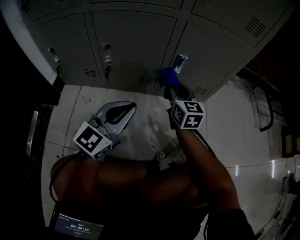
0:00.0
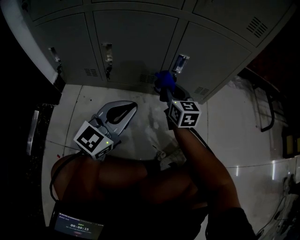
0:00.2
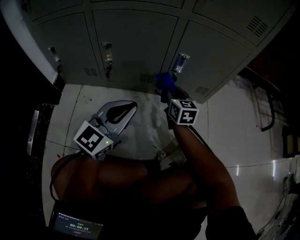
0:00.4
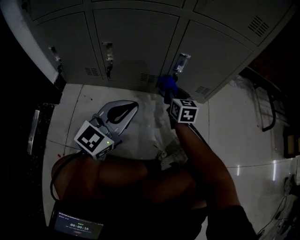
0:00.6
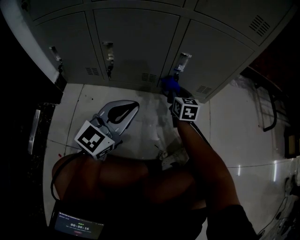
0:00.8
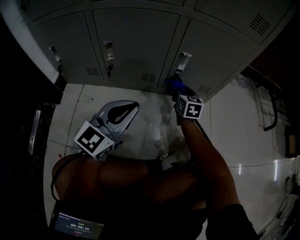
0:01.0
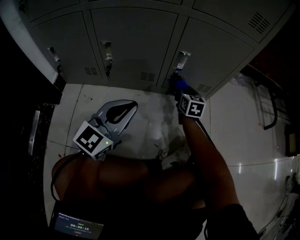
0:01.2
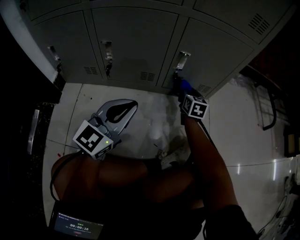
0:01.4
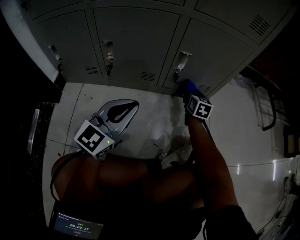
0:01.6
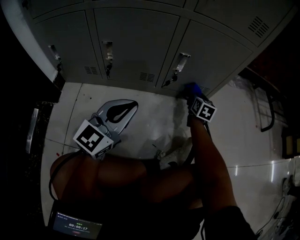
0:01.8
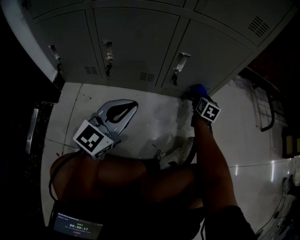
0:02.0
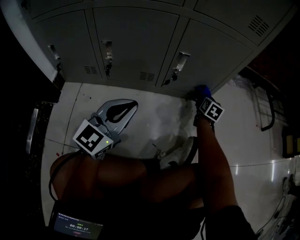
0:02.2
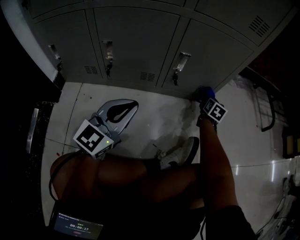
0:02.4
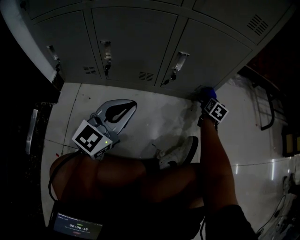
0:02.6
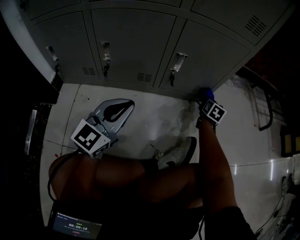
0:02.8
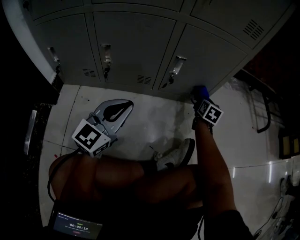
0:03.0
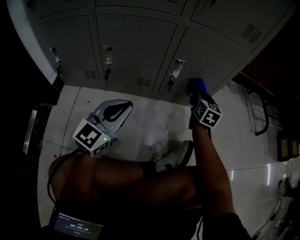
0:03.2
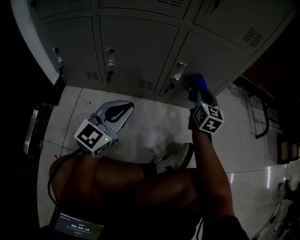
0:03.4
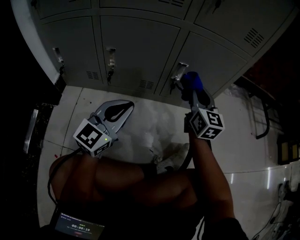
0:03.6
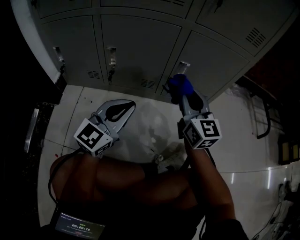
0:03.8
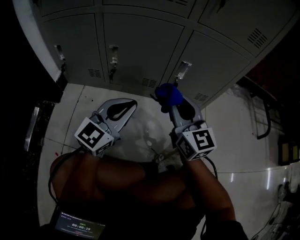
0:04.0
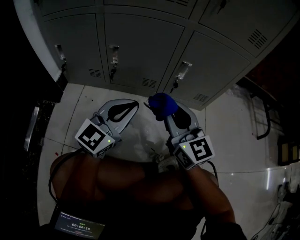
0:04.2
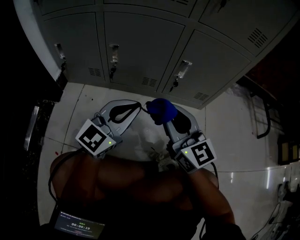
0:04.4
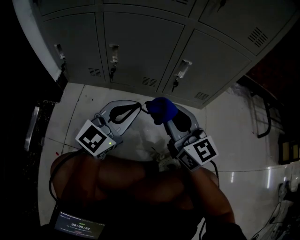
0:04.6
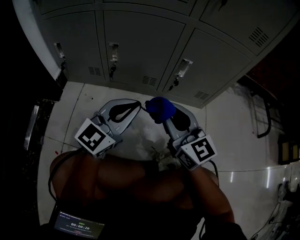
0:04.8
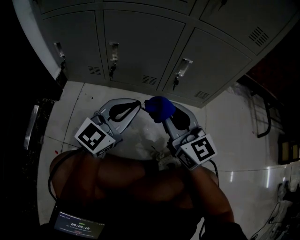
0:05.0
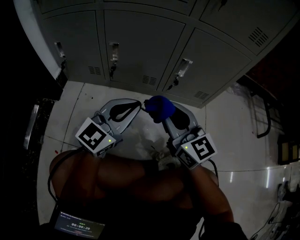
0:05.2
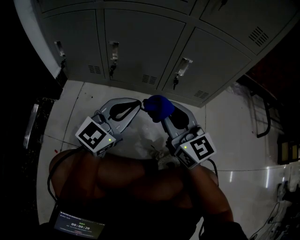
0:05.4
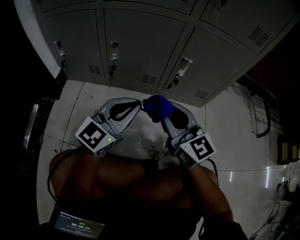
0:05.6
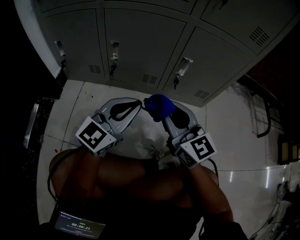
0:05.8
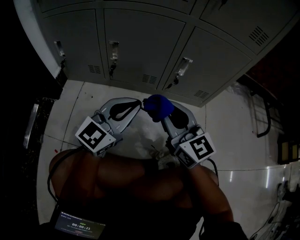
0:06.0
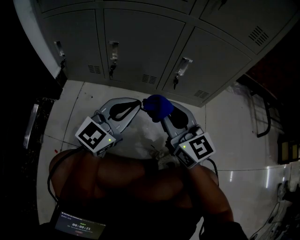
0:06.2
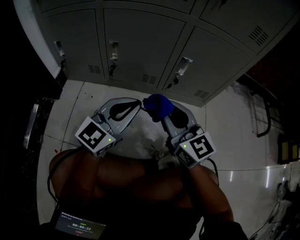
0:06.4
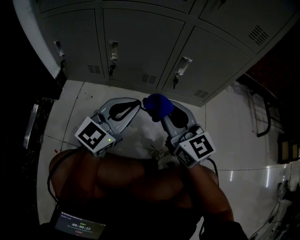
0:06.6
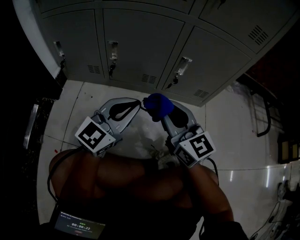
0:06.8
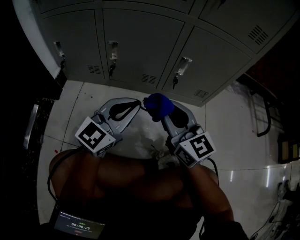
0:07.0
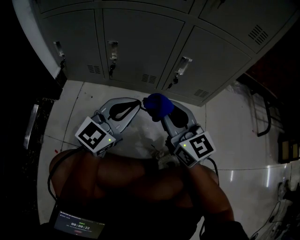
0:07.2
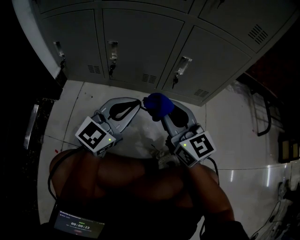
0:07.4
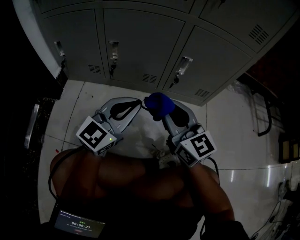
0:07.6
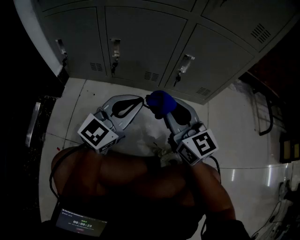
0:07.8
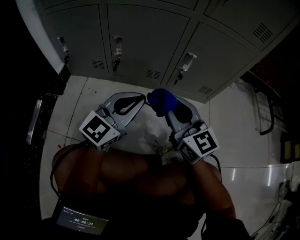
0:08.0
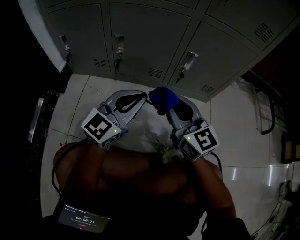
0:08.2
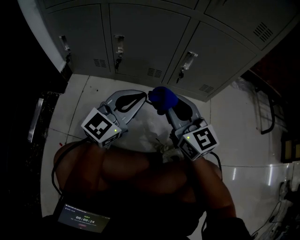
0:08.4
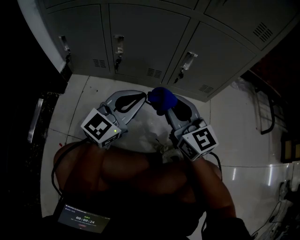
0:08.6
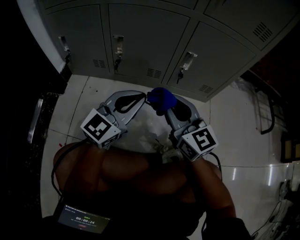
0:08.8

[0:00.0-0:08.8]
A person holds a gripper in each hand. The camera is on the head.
0:00.0 to 0:01.4: The right gripper moves downward, to the right and forward, some 15 cm.
0:01.4 to 0:03.0: The right gripper goes roughly 10 cm to the right.
0:03.0 to 0:04.4: The right gripper shifts approximately 35 cm backward, to the left and upward, and angles its fingers upward, by about 30 degrees.
0:04.4 to 0:05.8: The two grippers keep their place.
0:05.8 to 0:08.8: The two grippers keep their place.

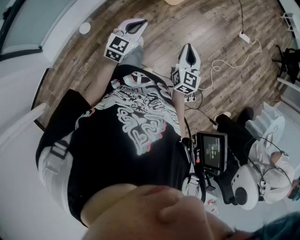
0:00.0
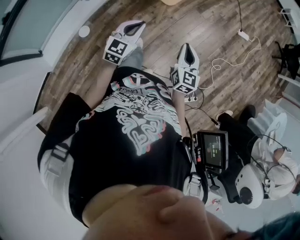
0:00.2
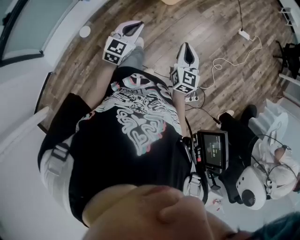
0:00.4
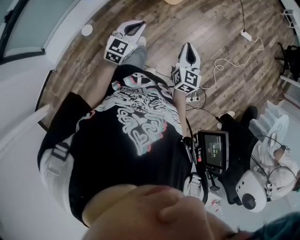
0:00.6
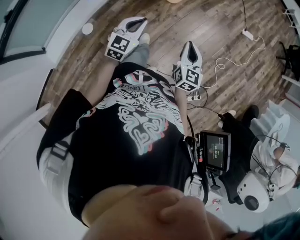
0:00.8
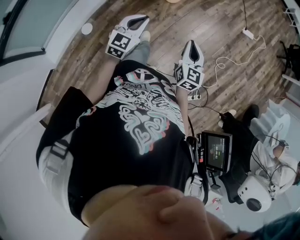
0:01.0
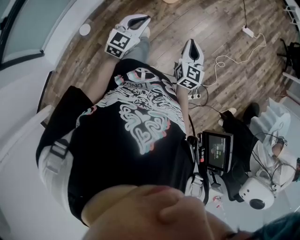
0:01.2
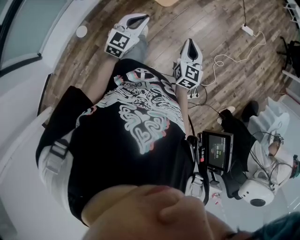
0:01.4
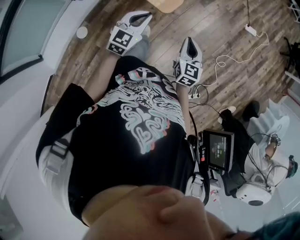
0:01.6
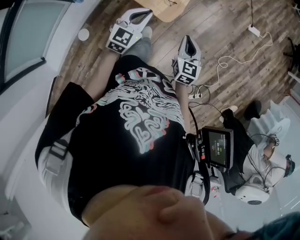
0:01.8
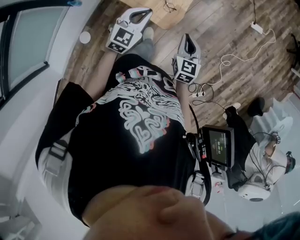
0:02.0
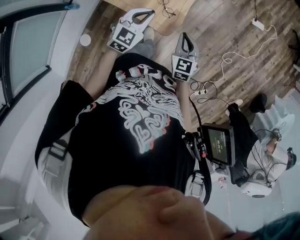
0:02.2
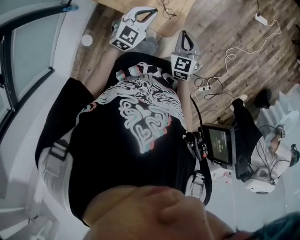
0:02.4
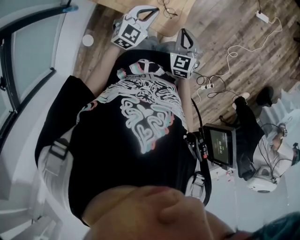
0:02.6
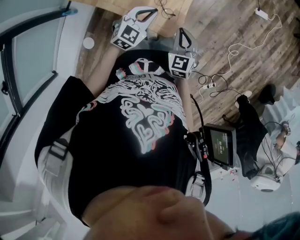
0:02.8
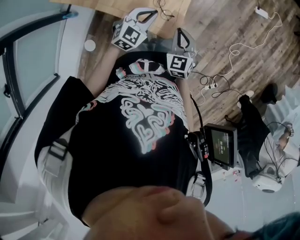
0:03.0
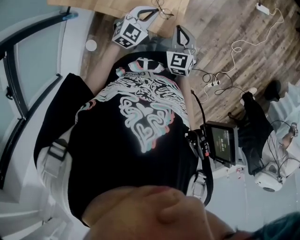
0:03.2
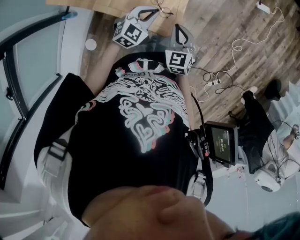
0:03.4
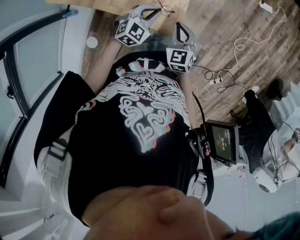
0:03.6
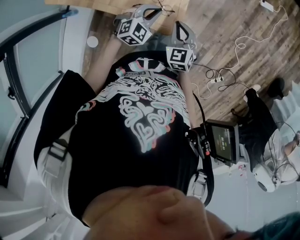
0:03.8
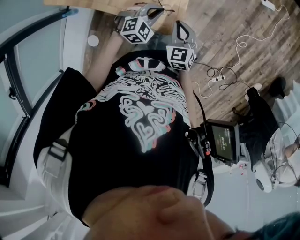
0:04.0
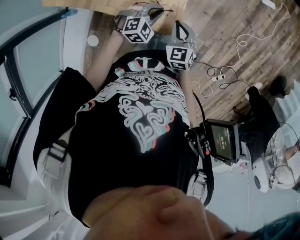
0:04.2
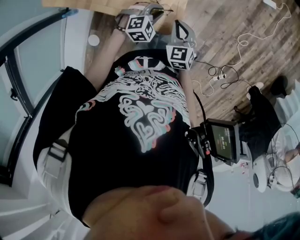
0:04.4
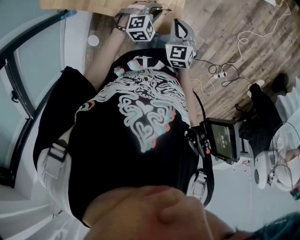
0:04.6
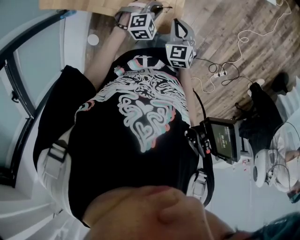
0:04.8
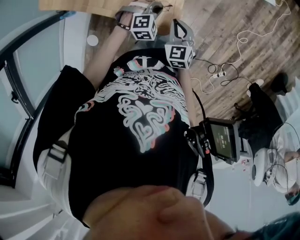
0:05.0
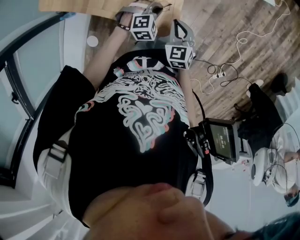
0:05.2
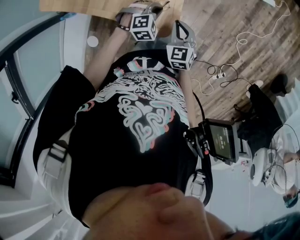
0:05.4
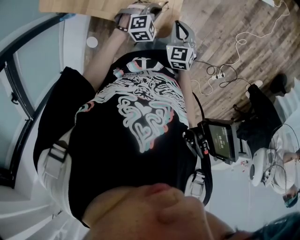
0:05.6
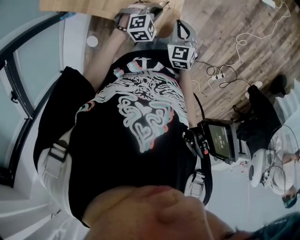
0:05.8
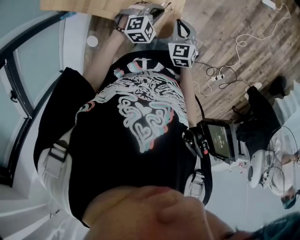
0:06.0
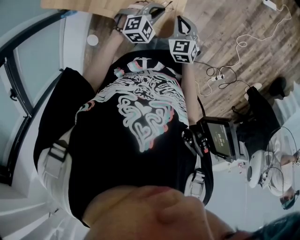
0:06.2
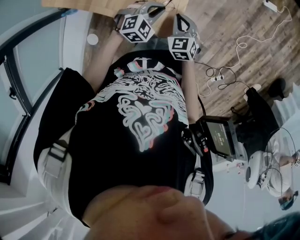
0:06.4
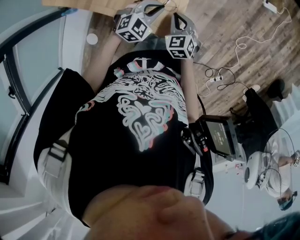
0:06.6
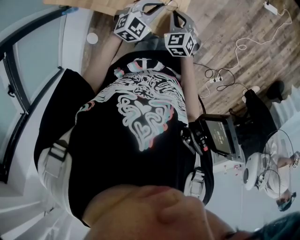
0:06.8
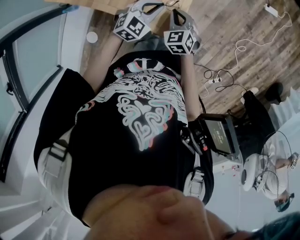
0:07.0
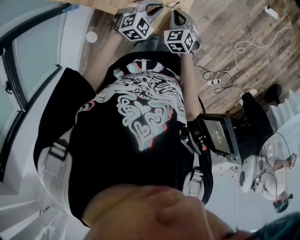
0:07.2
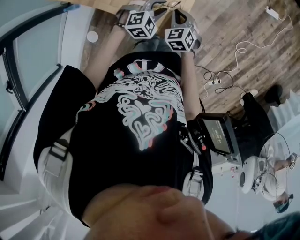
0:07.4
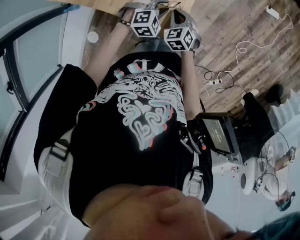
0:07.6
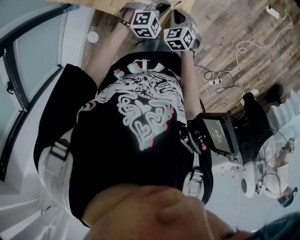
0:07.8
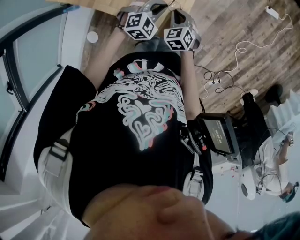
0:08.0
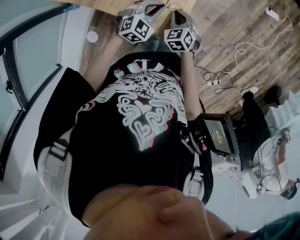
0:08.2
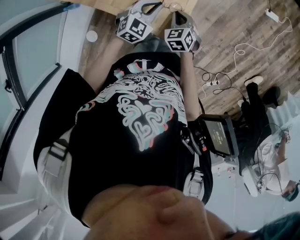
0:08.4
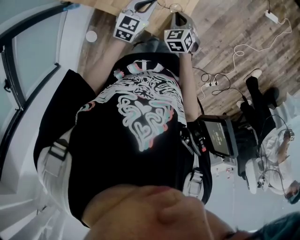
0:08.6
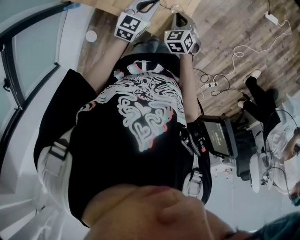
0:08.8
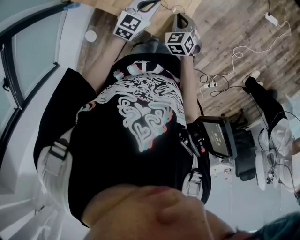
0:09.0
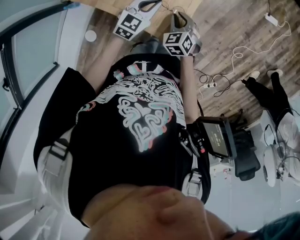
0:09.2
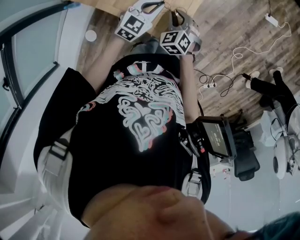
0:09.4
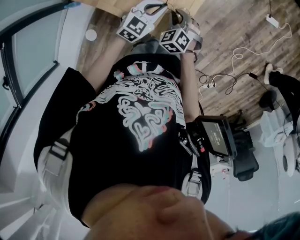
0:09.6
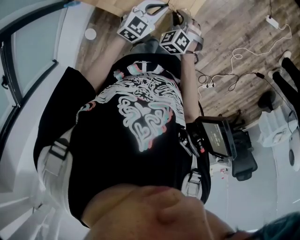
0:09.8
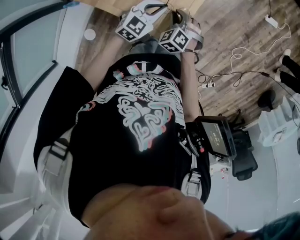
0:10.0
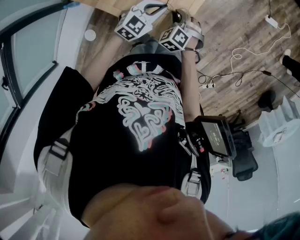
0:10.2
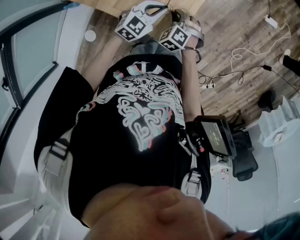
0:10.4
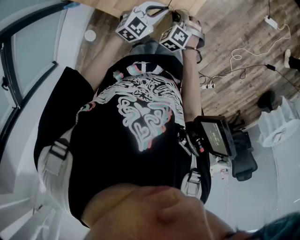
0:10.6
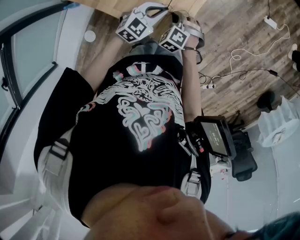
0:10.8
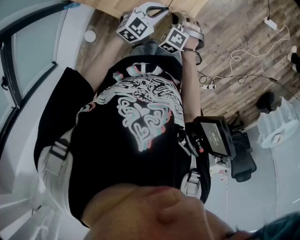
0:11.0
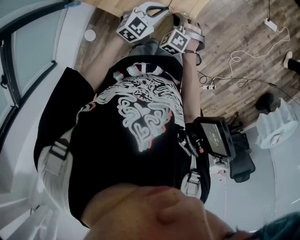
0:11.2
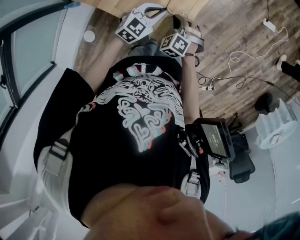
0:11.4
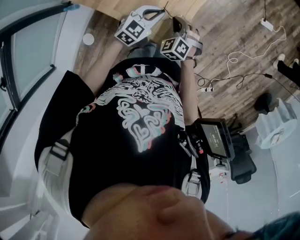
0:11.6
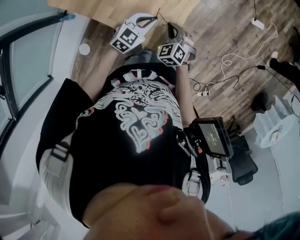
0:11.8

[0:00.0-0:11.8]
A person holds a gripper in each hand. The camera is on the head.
0:00.0 to 0:01.4: Both grippers travel together forward, some 10 cm.
0:01.4 to 0:03.0: The right gripper heads forward and to the left, covering roughly 25 cm, and changes its angle by about 20 degrees. The left gripper shifts approximately 25 cm forward, and turns by about 20 degrees.
0:03.0 to 0:04.4: The left gripper is displaced downward by about 10 cm, and turns by about 30 degrees. Meanwhile the right gripper ends up some 5 cm from where it was.
0:04.4 to 0:06.0: The grippers make only small movements.
0:06.0 to 0:07.4: The right gripper moves roughly 5 cm; the left gripper opens up.
0:07.4 to 0:08.8: The left gripper travels to the left and upward by roughly 10 cm, rotates around the line of its fingers by roughly 40 degrees, counterclockwise from behind, and closes its fingers.
0:08.8 to 0:10.4: The left gripper turns by roughly 20 degrees; the right gripper swivels some 30 degrees.
0:10.4 to 0:11.8: The grippers move only a little.

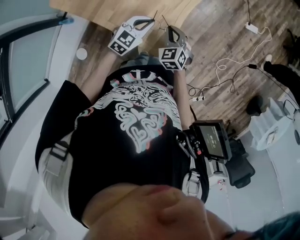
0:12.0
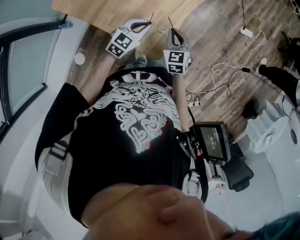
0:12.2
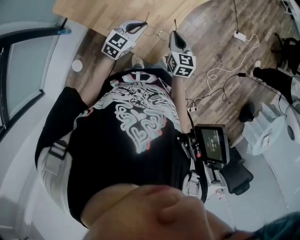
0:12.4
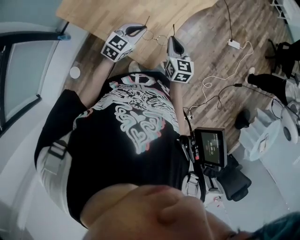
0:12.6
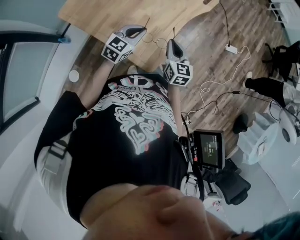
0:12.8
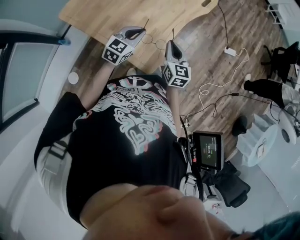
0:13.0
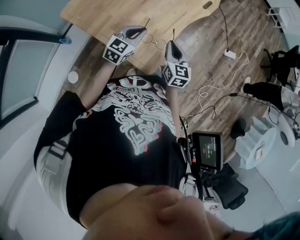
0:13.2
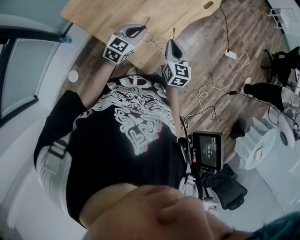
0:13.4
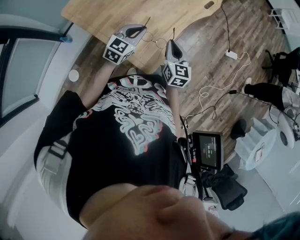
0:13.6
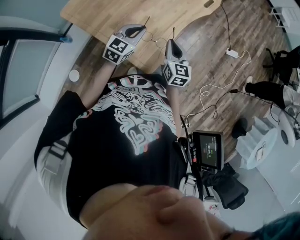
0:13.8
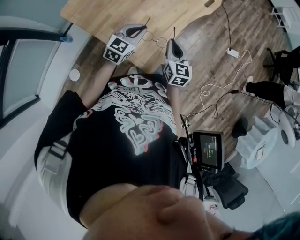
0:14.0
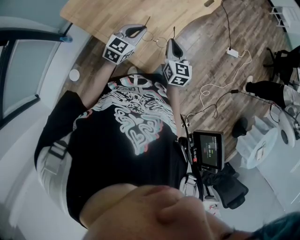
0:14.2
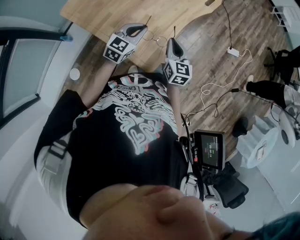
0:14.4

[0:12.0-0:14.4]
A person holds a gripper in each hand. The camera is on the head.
0:12.0 to 0:13.2: Both grippers travel together upward, some 10 cm. The right gripper turns by about 40 degrees.
0:13.2 to 0:14.4: The two grippers keep their place.

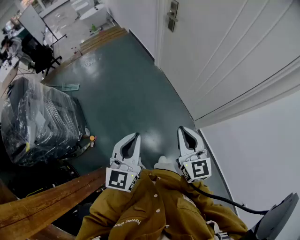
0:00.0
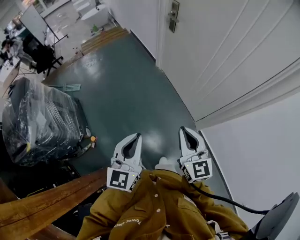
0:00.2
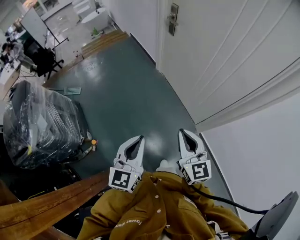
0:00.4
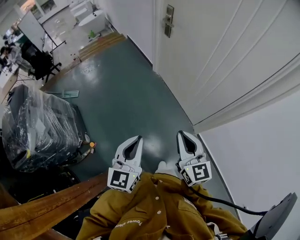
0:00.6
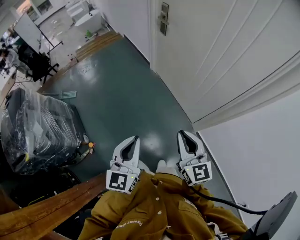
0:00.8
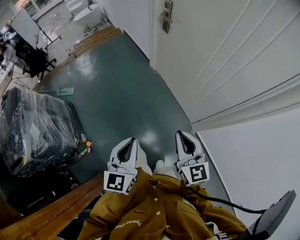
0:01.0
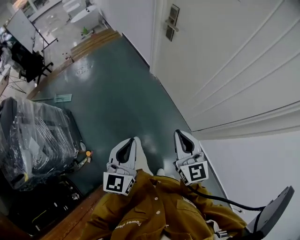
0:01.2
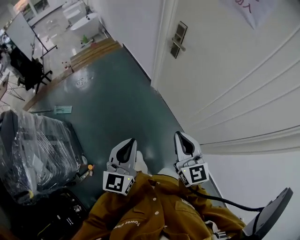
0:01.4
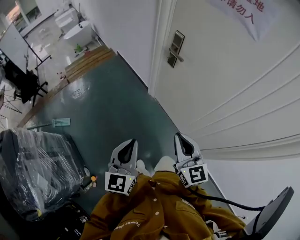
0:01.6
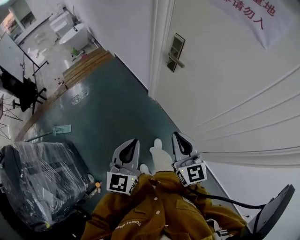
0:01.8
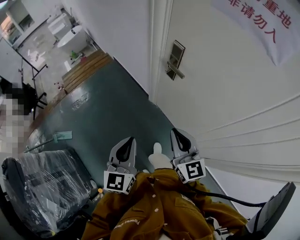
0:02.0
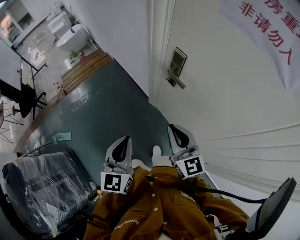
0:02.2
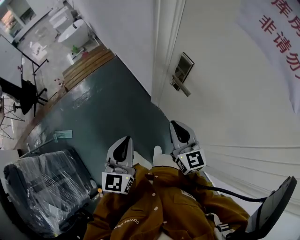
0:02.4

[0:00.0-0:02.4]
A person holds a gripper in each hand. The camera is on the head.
0:00.0 to 0:01.2: The two grippers go approximately 15 cm forward.
0:01.2 to 0:02.4: Both grippers are carried forward, about 50 cm.
